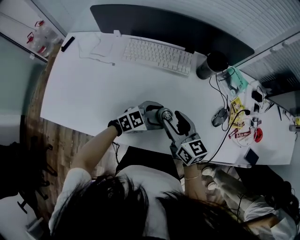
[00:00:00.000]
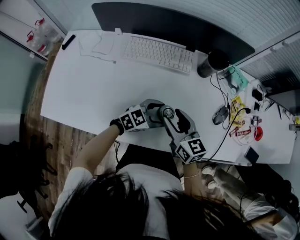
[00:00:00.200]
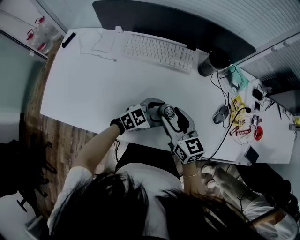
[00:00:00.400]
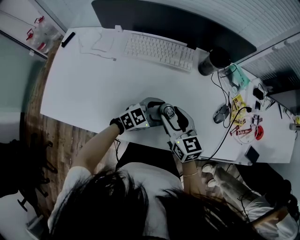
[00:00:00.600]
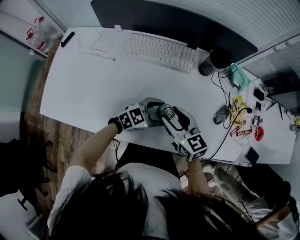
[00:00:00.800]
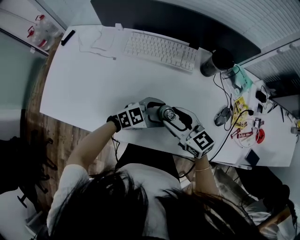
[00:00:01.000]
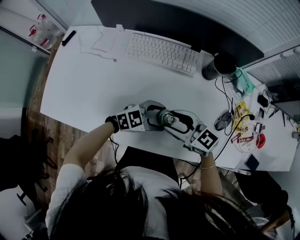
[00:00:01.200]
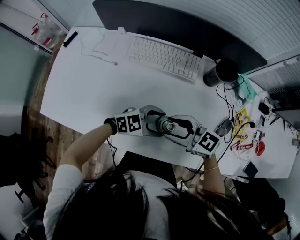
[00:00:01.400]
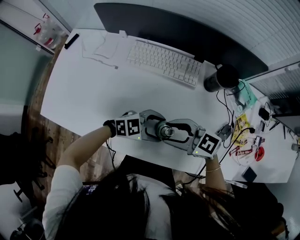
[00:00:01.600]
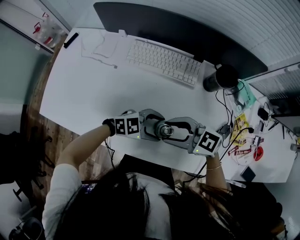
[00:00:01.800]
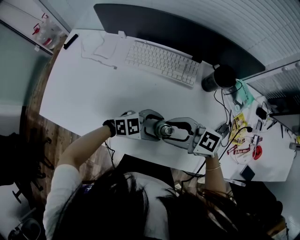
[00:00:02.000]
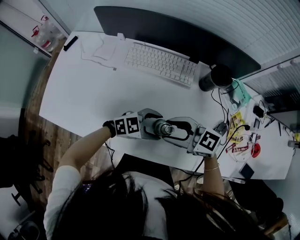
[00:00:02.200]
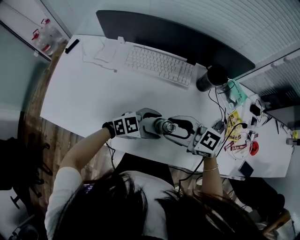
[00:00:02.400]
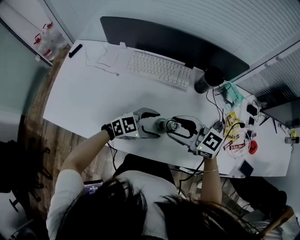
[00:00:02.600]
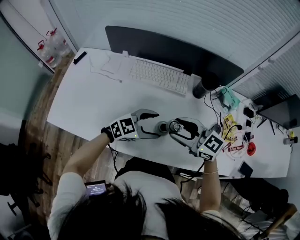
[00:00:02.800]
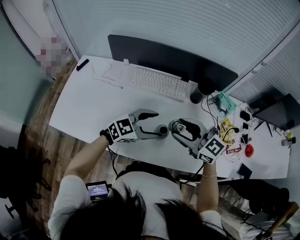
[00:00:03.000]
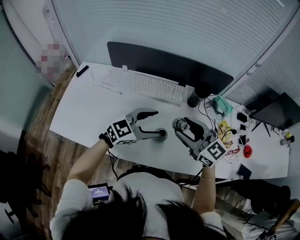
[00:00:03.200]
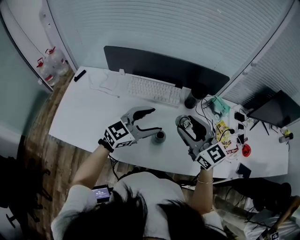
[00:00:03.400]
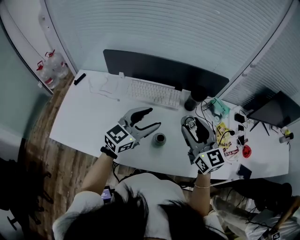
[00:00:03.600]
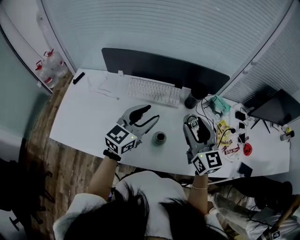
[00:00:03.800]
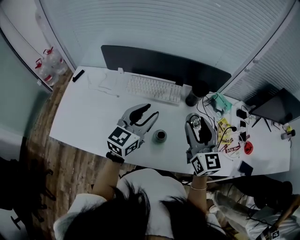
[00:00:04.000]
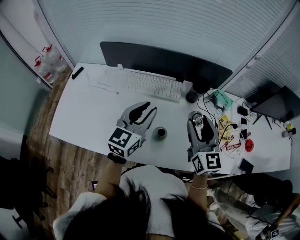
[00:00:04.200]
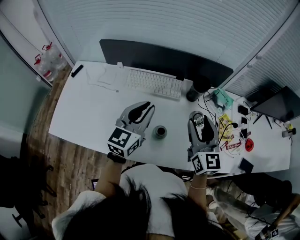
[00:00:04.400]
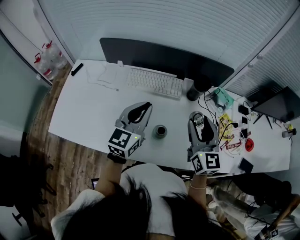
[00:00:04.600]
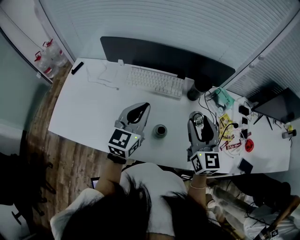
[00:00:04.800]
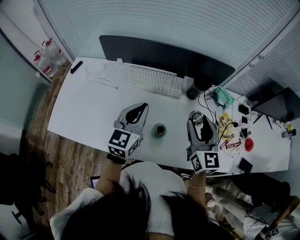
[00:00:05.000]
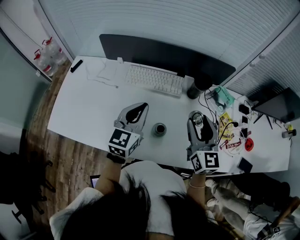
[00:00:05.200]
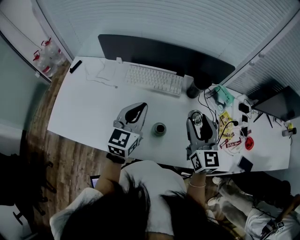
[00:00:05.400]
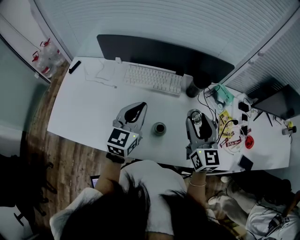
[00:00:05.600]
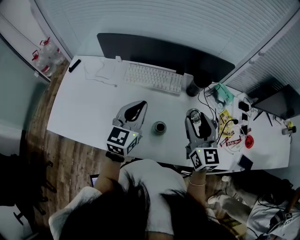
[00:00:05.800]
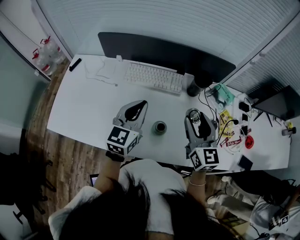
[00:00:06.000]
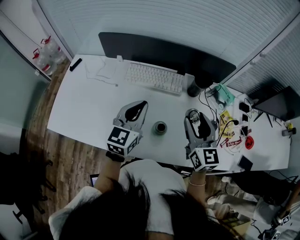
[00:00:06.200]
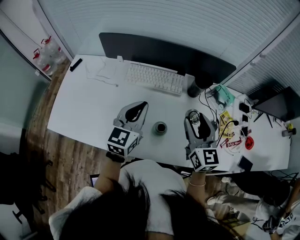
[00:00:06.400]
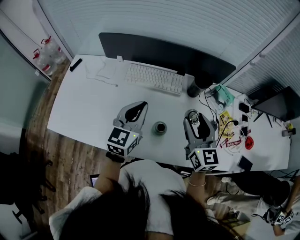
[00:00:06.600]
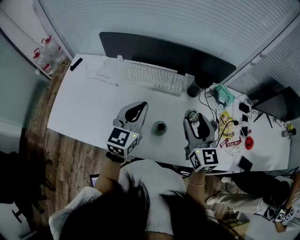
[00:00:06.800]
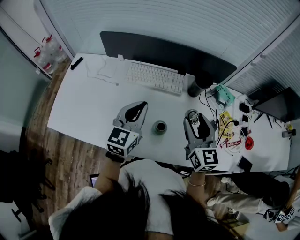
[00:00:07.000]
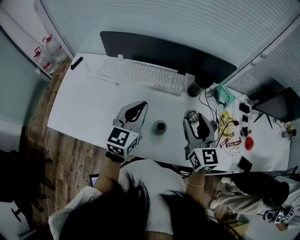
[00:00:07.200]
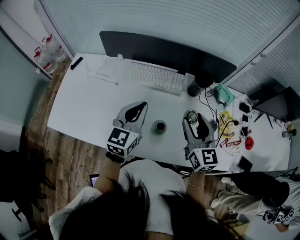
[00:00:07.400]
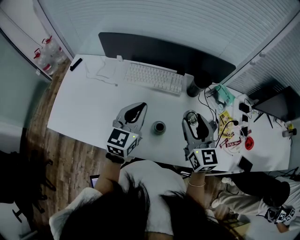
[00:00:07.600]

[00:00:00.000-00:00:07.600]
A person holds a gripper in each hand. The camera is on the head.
00:00:00.000 to 00:00:01.600: The right gripper rotates some 50 degrees.
00:00:01.600 to 00:00:03.000: The grippers both shift upward by roughly 15 cm. The right gripper changes its angle by about 30 degrees. Meanwhile the left gripper turns by roughly 20 degrees.
00:00:03.000 to 00:00:04.600: The right gripper changes place by roughly 10 cm, and changes its angle by approximately 50 degrees; the left gripper moves upward, some 10 cm, changes its angle by about 50 degrees, and closes.
00:00:04.600 to 00:00:06.000: The grippers move only a little.
00:00:06.000 to 00:00:07.600: Both grippers stay about where they are.

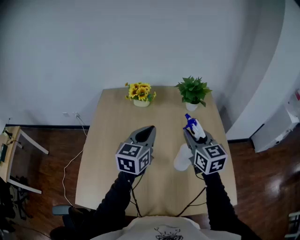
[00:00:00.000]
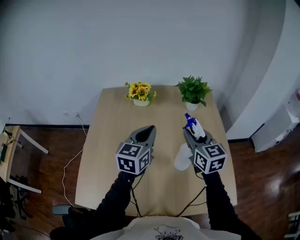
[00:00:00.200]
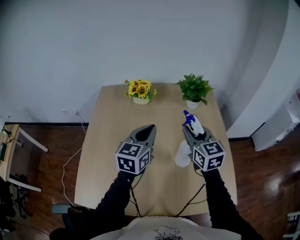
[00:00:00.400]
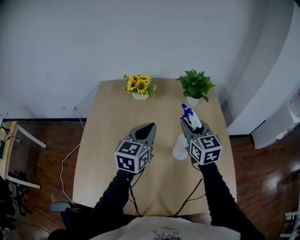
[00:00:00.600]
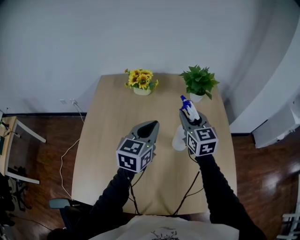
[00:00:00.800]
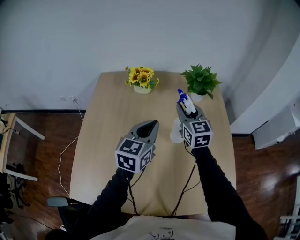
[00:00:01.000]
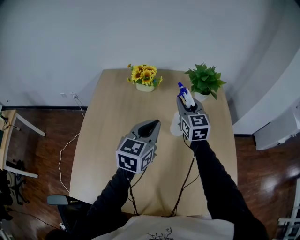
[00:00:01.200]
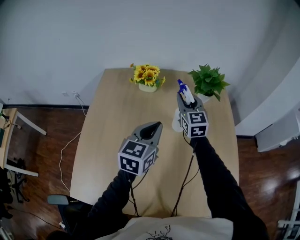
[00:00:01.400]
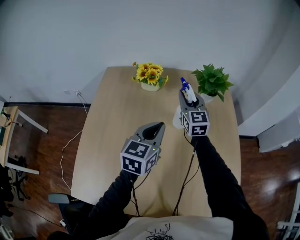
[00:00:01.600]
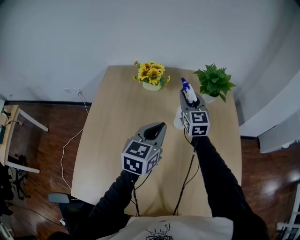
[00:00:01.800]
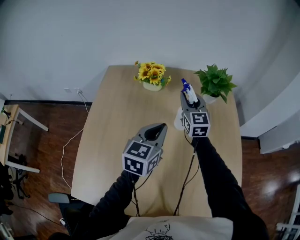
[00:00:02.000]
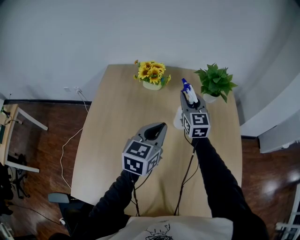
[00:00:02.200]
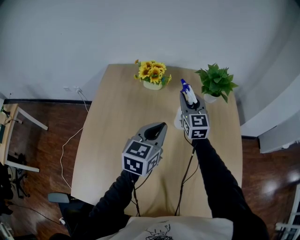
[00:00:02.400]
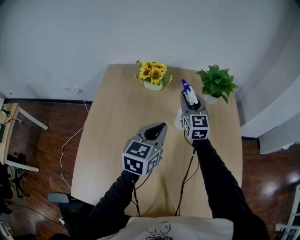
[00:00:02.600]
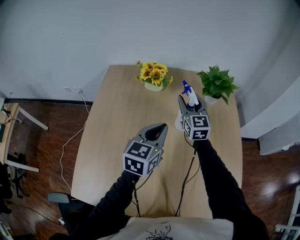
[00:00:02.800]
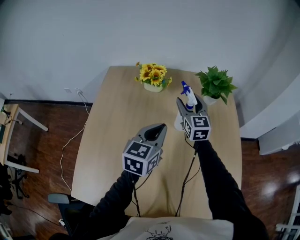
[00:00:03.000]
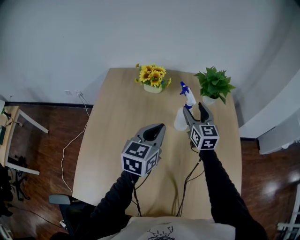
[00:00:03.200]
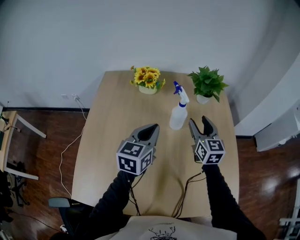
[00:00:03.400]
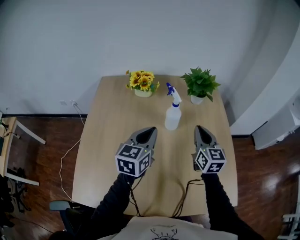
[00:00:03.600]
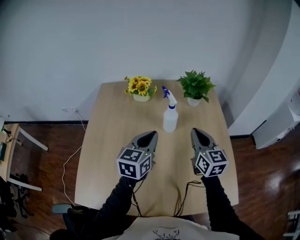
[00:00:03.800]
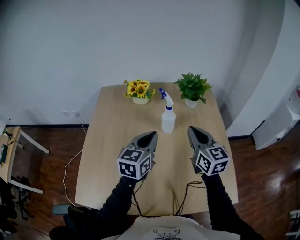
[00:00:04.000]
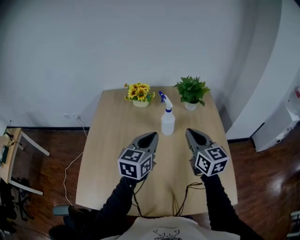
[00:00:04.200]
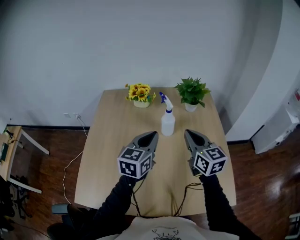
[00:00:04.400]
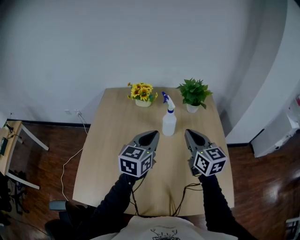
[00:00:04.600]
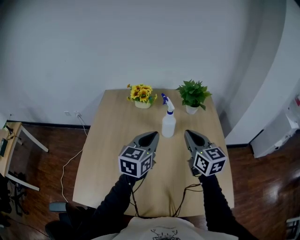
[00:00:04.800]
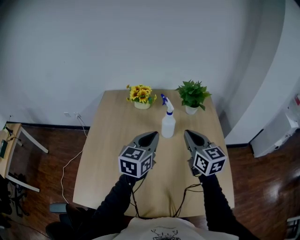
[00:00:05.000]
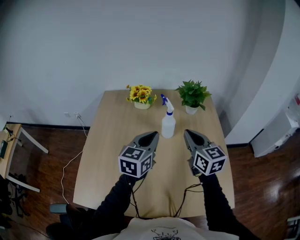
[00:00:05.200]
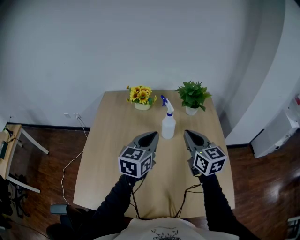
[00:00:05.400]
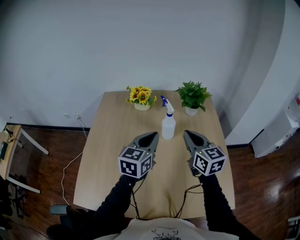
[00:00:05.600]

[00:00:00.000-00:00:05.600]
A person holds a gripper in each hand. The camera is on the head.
00:00:00.000 to 00:00:01.400: The right gripper goes about 25 cm forward and to the left; the left gripper travels downward and forward by roughly 10 cm.
00:00:01.400 to 00:00:02.800: The right gripper opens its fingers.
00:00:02.800 to 00:00:04.200: The left gripper heads backward, upward and to the right, covering some 15 cm, while the right gripper shifts approximately 30 cm backward and to the right, and closes up.
00:00:04.200 to 00:00:05.600: The grippers stay close to where they were, moving slightly.

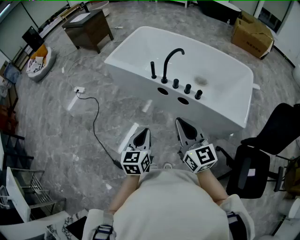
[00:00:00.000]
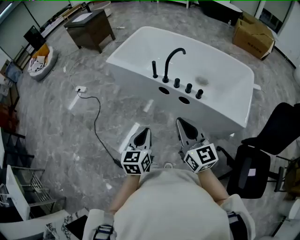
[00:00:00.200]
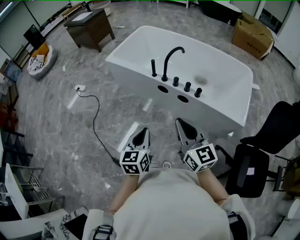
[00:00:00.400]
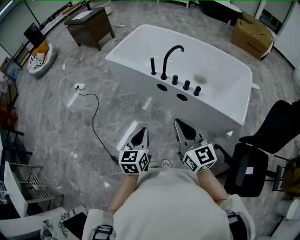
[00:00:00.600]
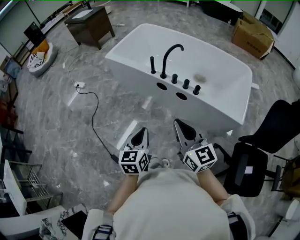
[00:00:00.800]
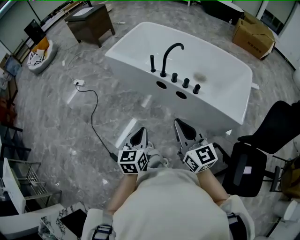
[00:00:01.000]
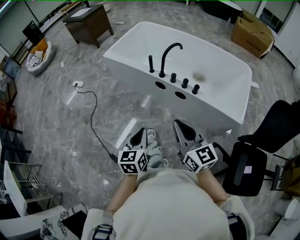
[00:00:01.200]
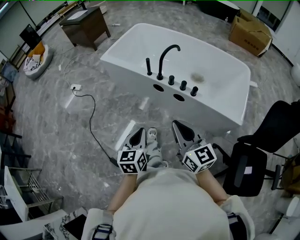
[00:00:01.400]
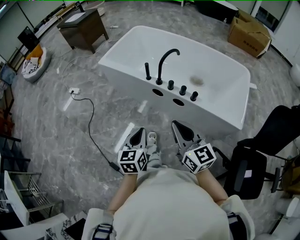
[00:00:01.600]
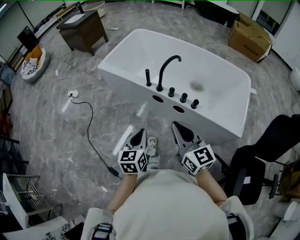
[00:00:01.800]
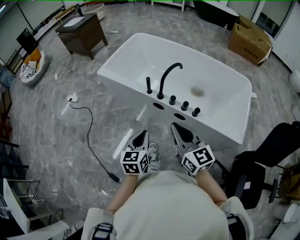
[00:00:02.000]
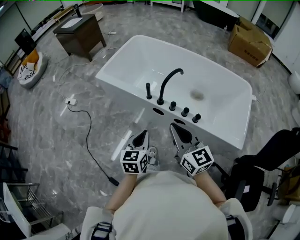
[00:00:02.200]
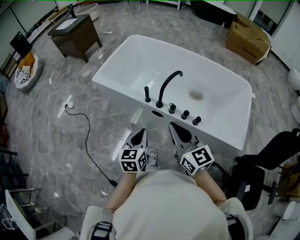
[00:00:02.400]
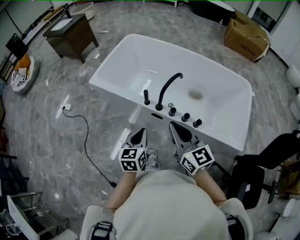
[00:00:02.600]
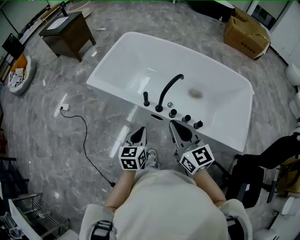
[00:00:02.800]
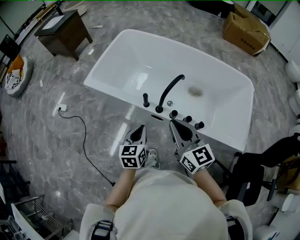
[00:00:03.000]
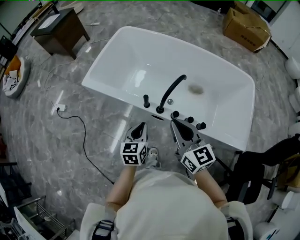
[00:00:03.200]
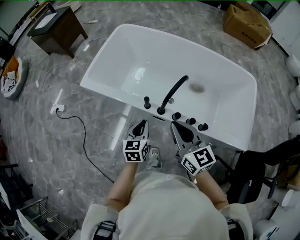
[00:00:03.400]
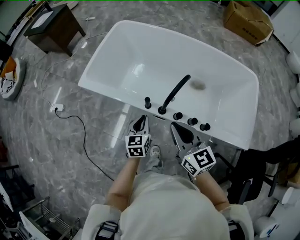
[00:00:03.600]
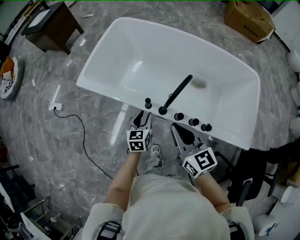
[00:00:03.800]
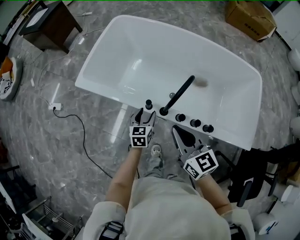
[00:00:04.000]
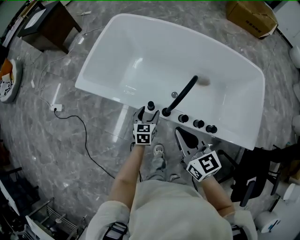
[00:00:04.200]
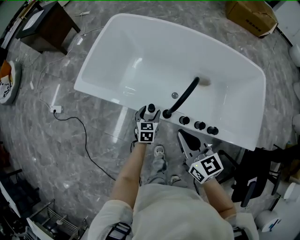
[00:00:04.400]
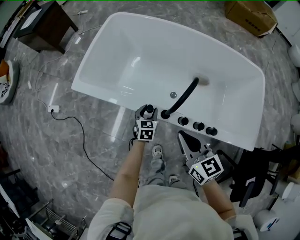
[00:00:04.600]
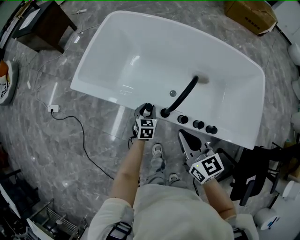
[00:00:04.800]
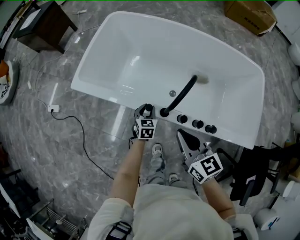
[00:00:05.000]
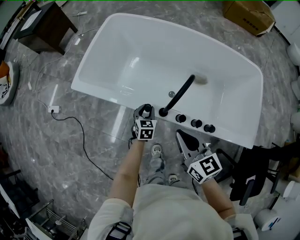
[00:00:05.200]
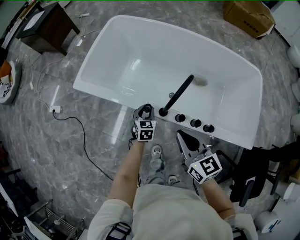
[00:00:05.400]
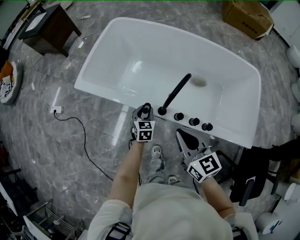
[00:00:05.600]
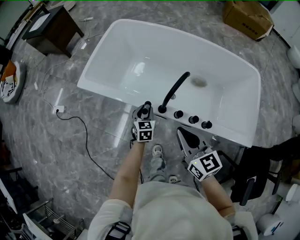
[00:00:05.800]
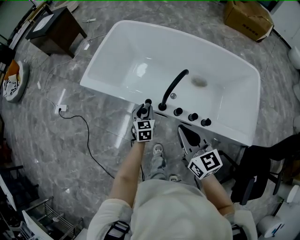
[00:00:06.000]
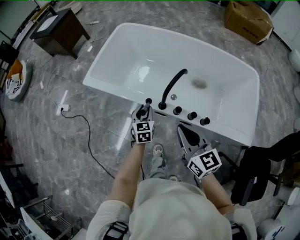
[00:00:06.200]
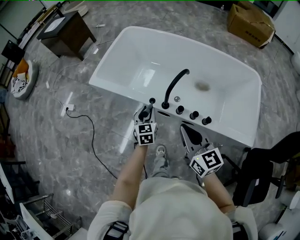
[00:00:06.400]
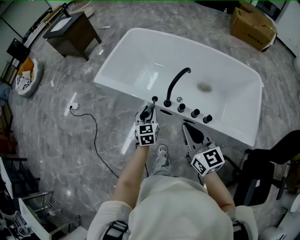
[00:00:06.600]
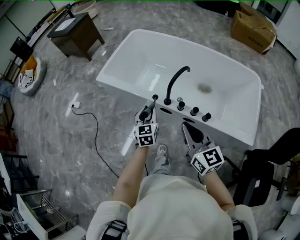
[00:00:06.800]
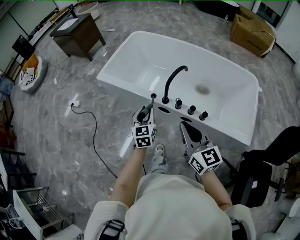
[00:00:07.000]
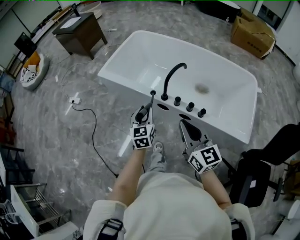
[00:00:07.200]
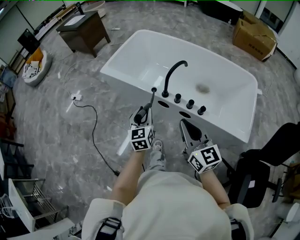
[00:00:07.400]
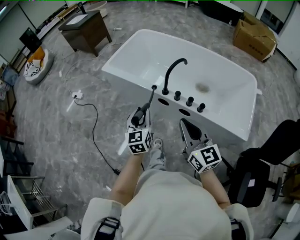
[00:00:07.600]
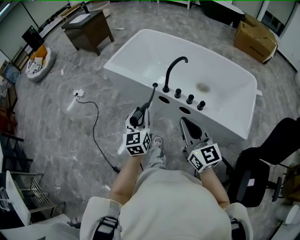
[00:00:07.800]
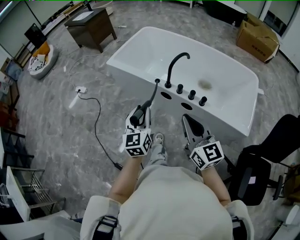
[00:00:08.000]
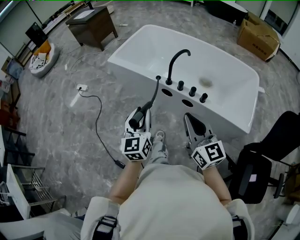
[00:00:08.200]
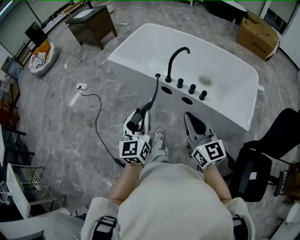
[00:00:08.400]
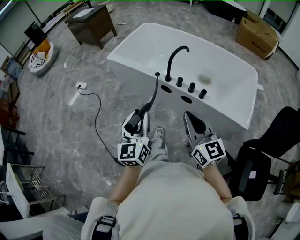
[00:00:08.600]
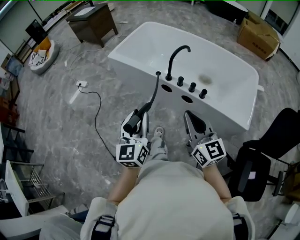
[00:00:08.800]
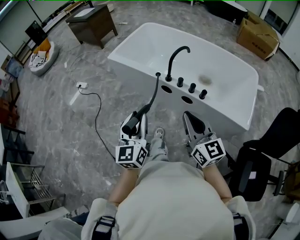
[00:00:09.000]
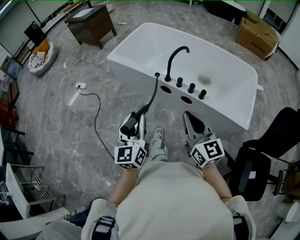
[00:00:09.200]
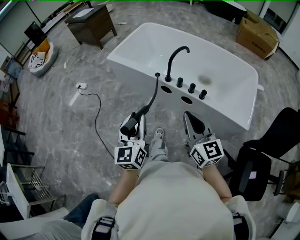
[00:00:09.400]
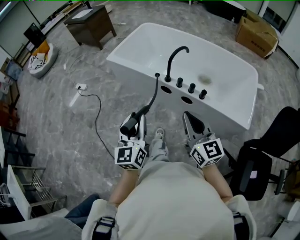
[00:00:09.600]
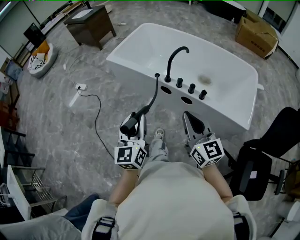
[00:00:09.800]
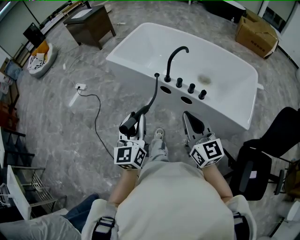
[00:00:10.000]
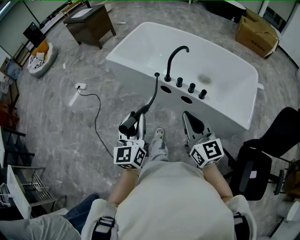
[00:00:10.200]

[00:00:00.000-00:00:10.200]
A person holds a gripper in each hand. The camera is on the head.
00:00:00.000 to 00:00:01.400: The grippers stay close to where they were, moving slightly.
00:00:01.400 to 00:00:03.000: The two grippers go roughly 35 cm forward.
00:00:03.000 to 00:00:04.400: The right gripper travels downward and forward by about 15 cm. The left gripper heads downward and forward, covering some 30 cm, and opens.
00:00:04.400 to 00:00:05.800: The left gripper is displaced upward by roughly 5 cm, and closes its fingers; the right gripper moves backward, roughly 5 cm.
00:00:05.800 to 00:00:07.200: The grippers both shift backward and upward by roughly 25 cm. The left gripper changes its angle by approximately 20 degrees.
00:00:07.200 to 00:00:08.800: The left gripper goes approximately 25 cm backward and upward, while the right gripper is displaced backward by approximately 15 cm.
00:00:08.800 to 00:00:10.200: There are only small adjustments of the grippers.
